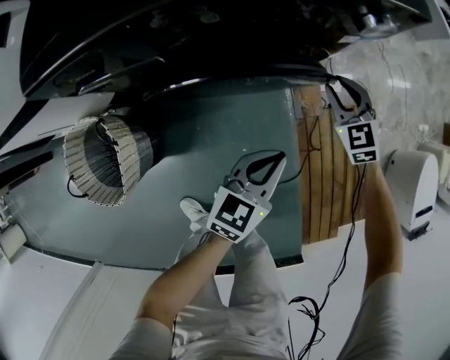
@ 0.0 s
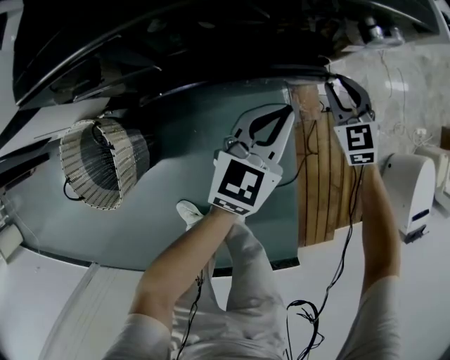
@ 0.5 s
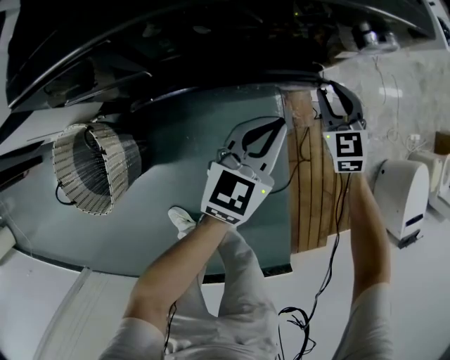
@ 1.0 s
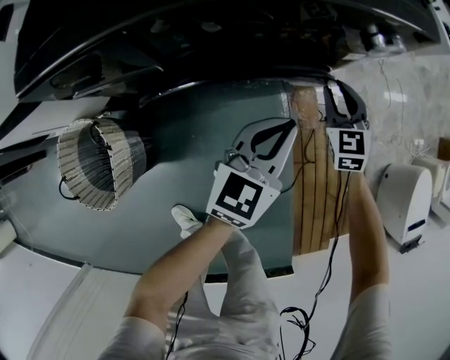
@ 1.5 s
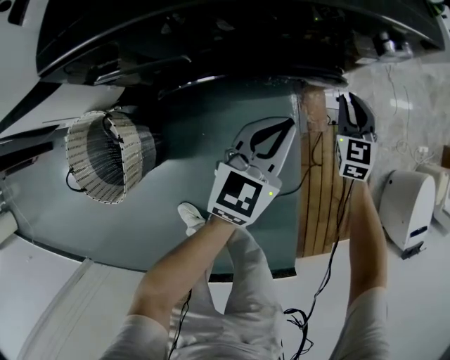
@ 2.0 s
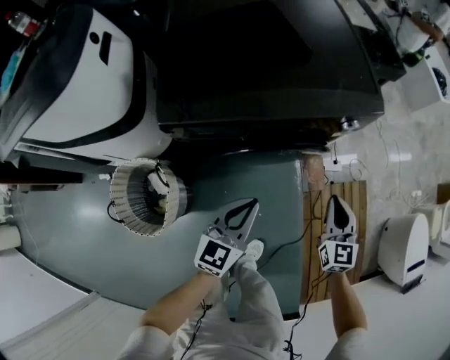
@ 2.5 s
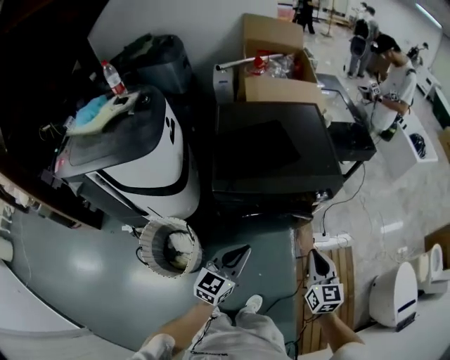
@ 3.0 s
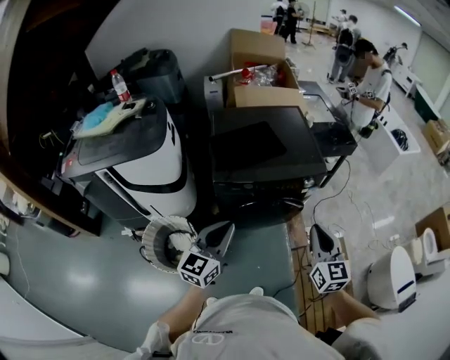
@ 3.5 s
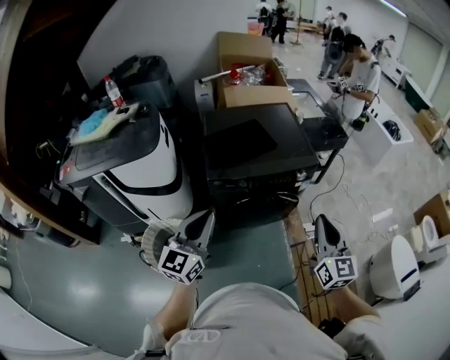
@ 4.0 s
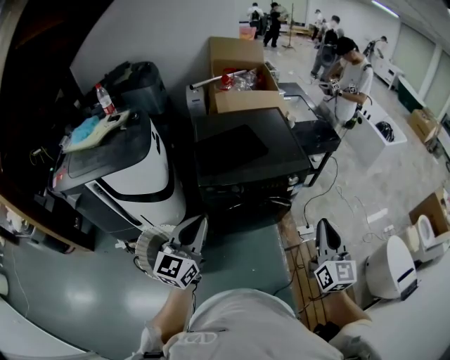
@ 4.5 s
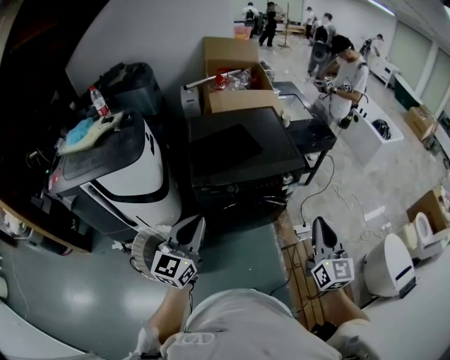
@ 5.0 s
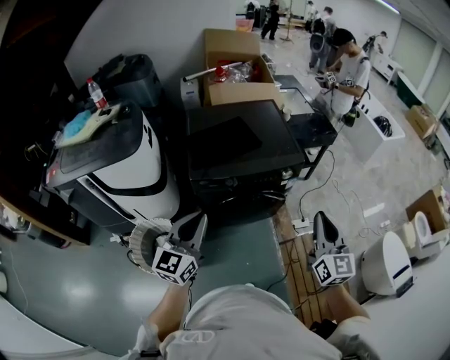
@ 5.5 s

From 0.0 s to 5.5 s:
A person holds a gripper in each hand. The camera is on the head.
From 0.0 s to 2.0 s: The left gripper shifts approximately 10 cm forward.
From 2.0 s to 3.5 s: The left gripper travels upward, backward and to the left by roughly 60 cm. Meanwhile the right gripper travels upward and backward by some 60 cm, and rotates some 30 degrees.
From 3.5 s to 5.5 s: The right gripper shifts roughly 10 cm to the right.

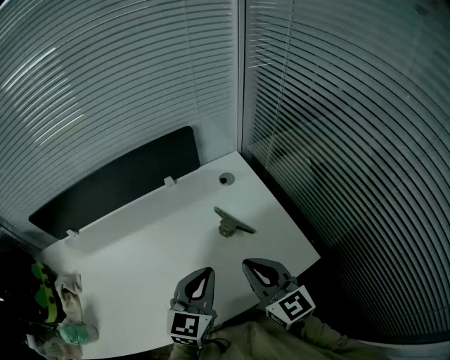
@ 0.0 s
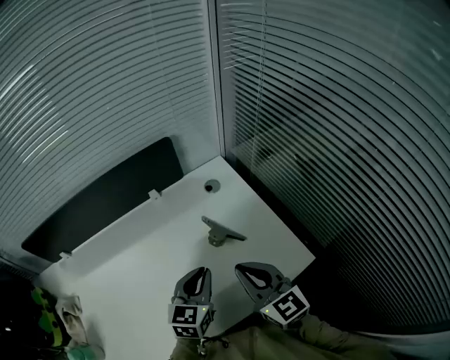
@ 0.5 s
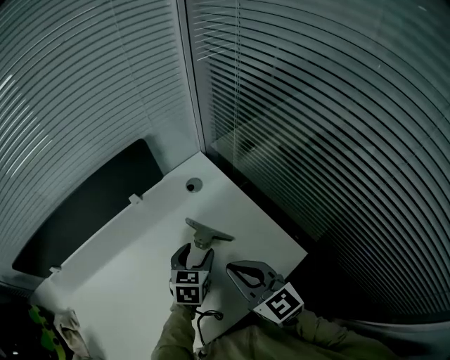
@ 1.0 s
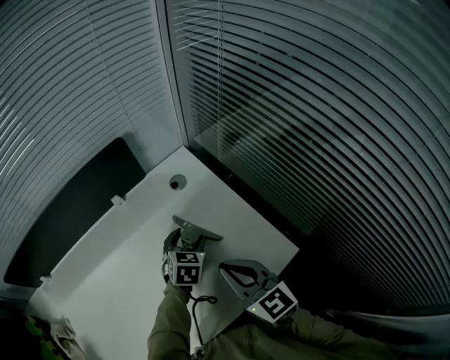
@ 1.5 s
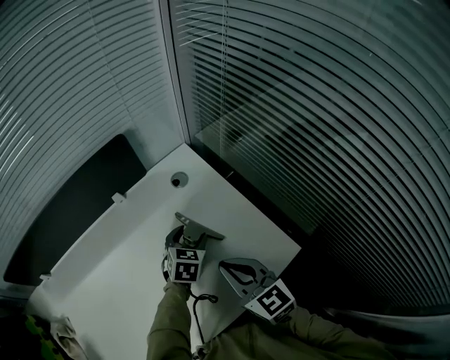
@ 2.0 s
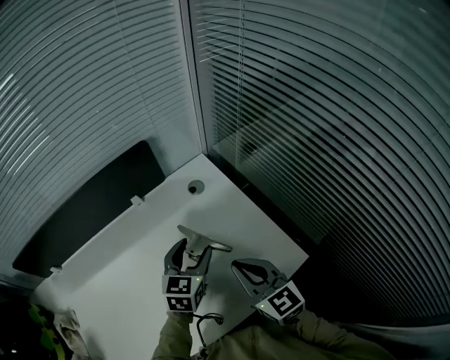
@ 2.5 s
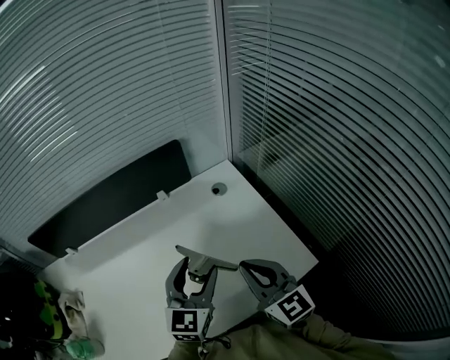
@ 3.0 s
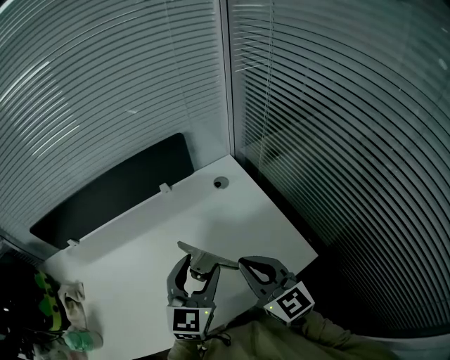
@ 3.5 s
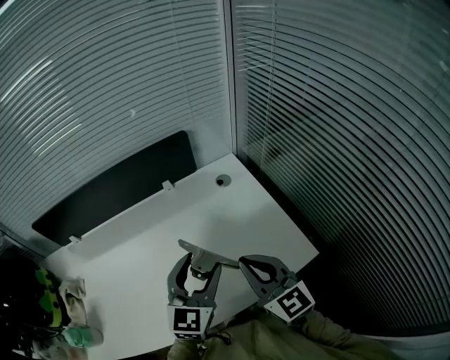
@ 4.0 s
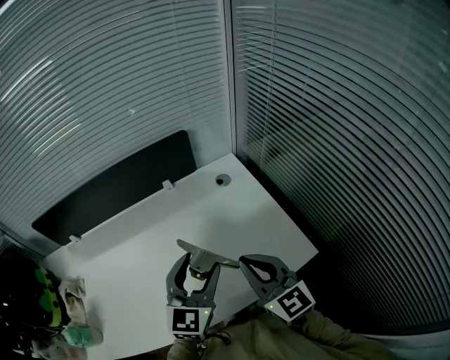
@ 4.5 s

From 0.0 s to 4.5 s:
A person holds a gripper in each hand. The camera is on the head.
From 0.0 s to 2.0 s: The left gripper heads forward, downward and to the right, covering about 25 cm, points its fingers some 30 degrees further downward, and opens its fingers. Meanwhile the right gripper goes roughly 10 cm downward and forward.
From 2.0 s to 4.5 s: The left gripper heads upward, backward and to the left, covering about 30 cm, and points its fingers some 40 degrees further upward. The right gripper heads upward and backward, covering approximately 10 cm.

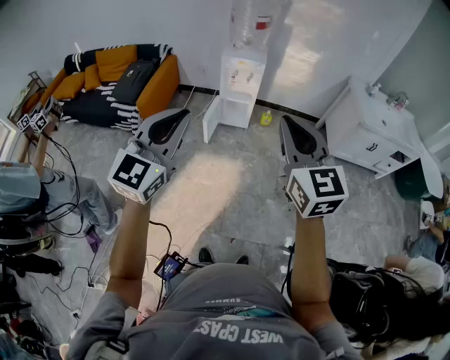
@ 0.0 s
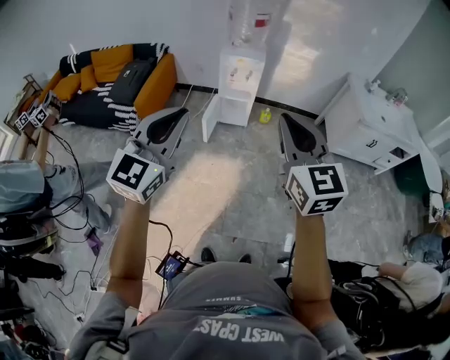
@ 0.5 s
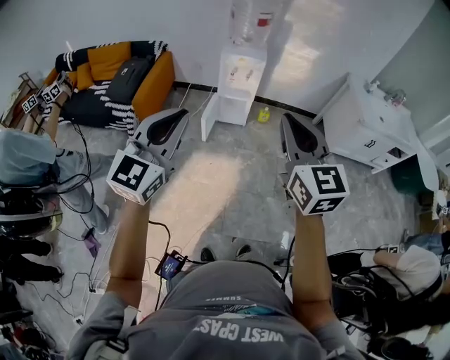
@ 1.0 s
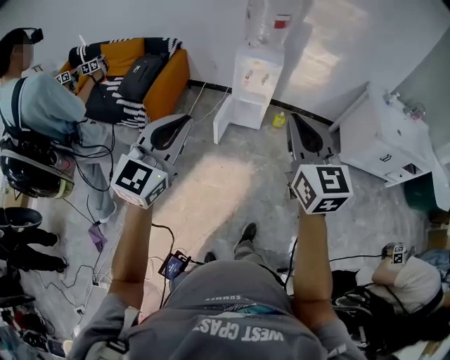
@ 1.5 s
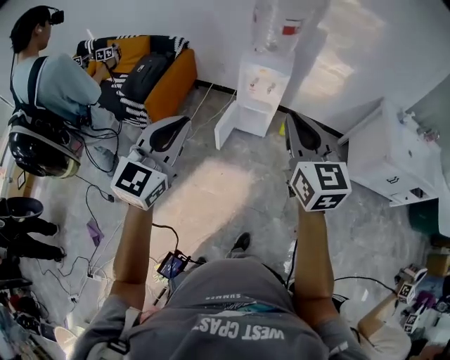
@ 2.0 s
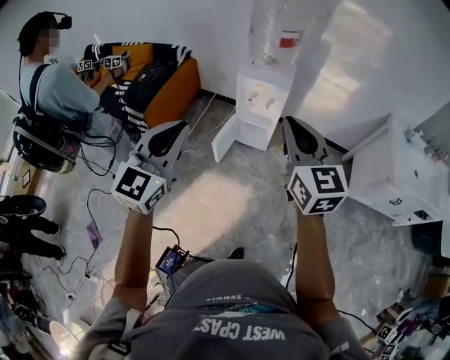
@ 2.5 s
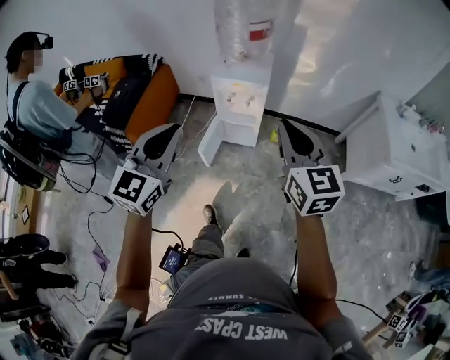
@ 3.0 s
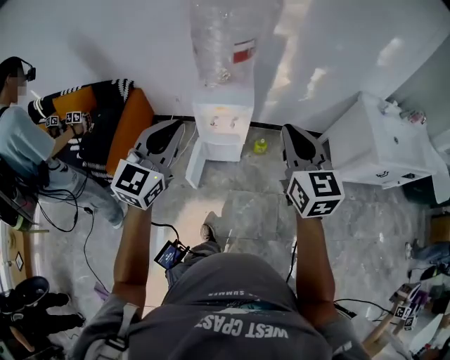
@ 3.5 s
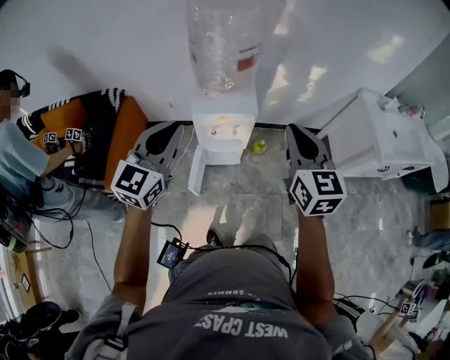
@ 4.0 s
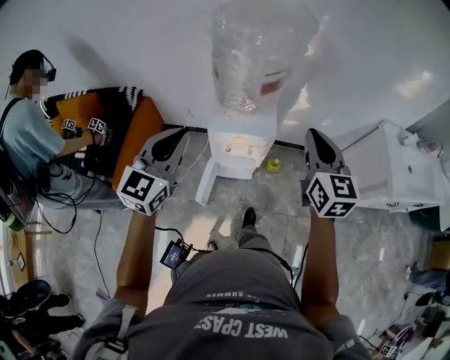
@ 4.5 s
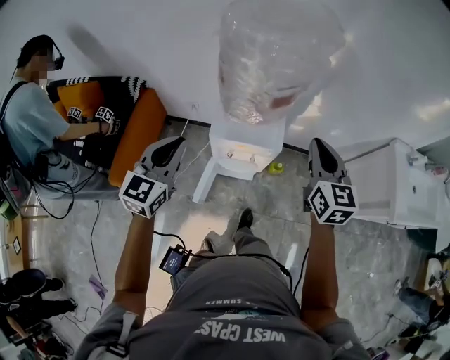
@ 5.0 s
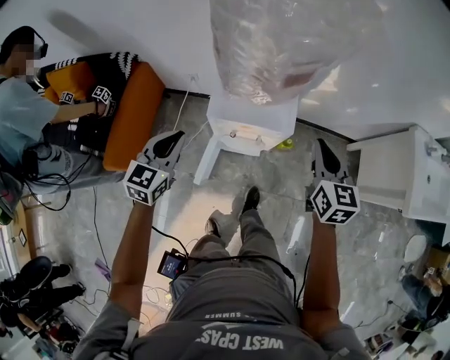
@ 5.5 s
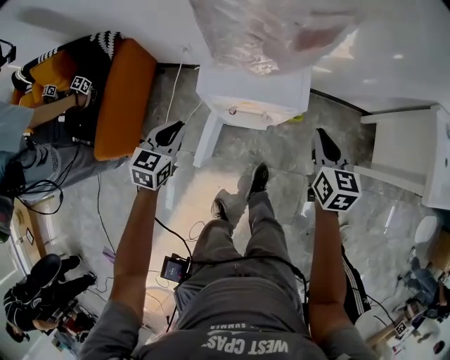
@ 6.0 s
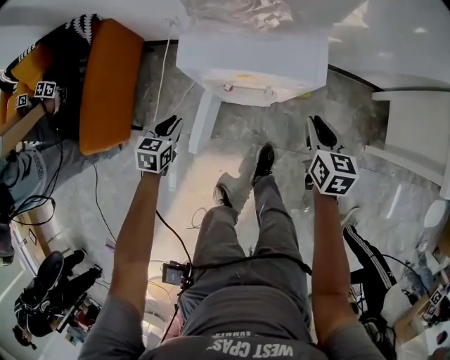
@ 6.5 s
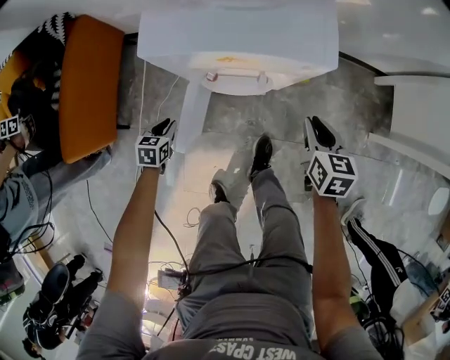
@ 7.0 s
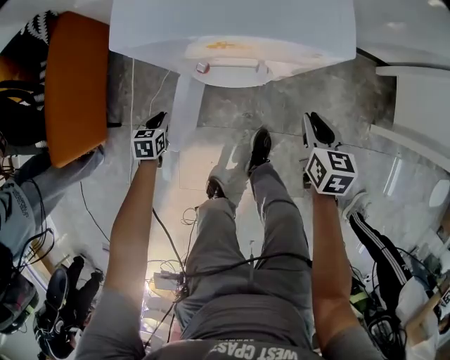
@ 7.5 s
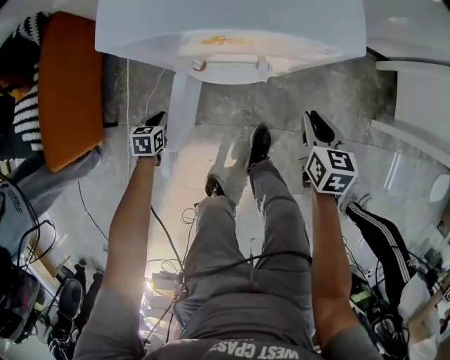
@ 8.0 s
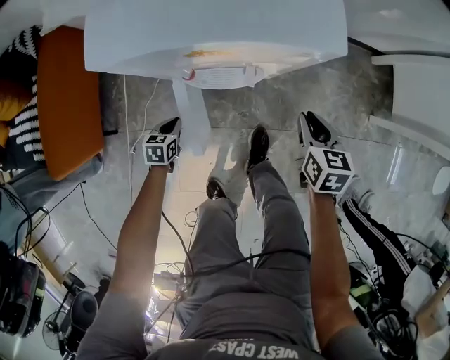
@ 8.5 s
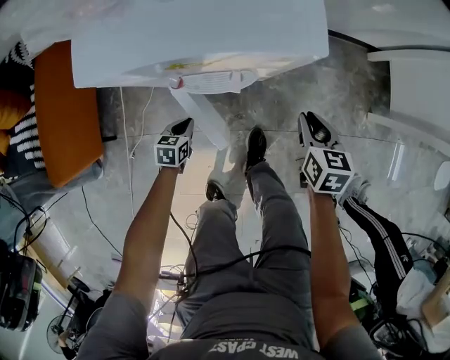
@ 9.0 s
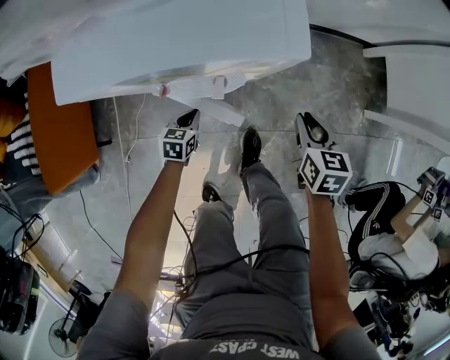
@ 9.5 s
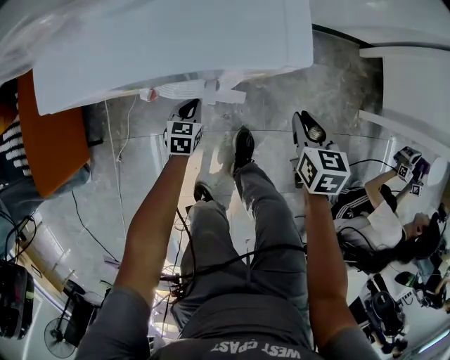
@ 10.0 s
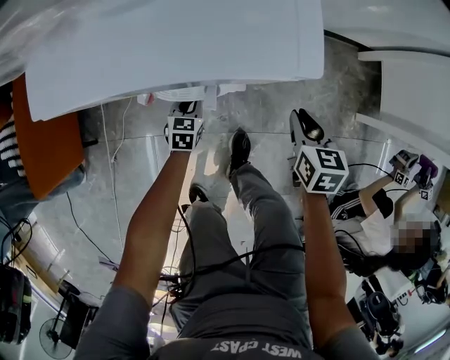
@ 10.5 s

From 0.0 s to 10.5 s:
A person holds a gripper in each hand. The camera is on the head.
From 0.0 s to 2.0 s: Both grippers move forward, approximately 20 cm.
From 2.0 s to 4.0 s: Both grippers move forward, some 40 cm. The right gripper turns by about 20 degrees.
From 4.0 s to 6.5 s: The grippers both shift downward by some 50 cm. The left gripper points its fingers about 50 degrees further downward, while the right gripper changes its angle by some 30 degrees.
From 6.5 s to 8.5 s: The right gripper heads downward, covering some 15 cm. The left gripper is displaced downward by roughly 25 cm.
From 8.5 s to 10.5 s: The right gripper changes place by about 5 cm; the left gripper heads to the right and forward, covering roughly 20 cm.

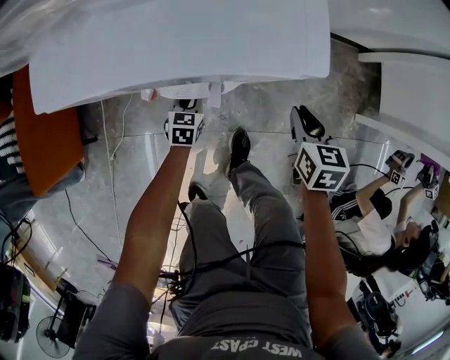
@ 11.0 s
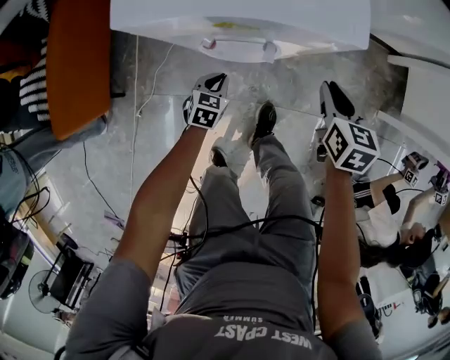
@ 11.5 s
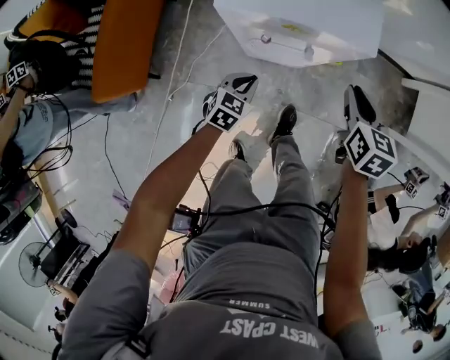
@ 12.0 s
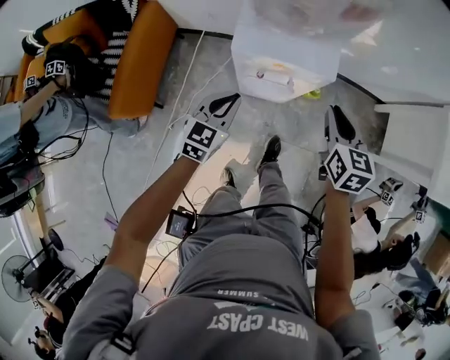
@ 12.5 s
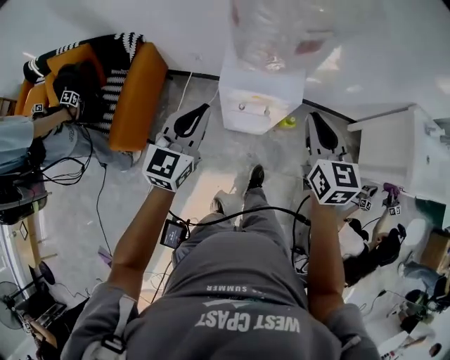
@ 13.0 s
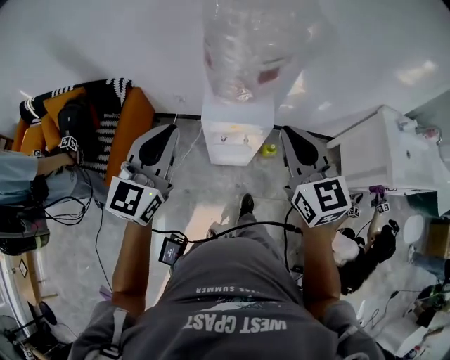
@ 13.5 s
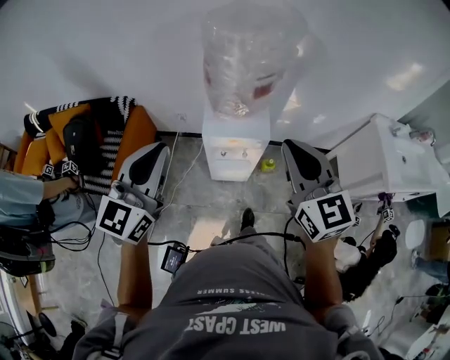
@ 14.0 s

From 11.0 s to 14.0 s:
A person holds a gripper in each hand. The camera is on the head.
From 11.0 s to 12.5 s: The grippers both shift upward by approximately 40 cm. The left gripper turns by roughly 20 degrees.
From 12.5 s to 14.0 s: The grippers both shift upward by about 40 cm. The right gripper changes its angle by roughly 30 degrees. The left gripper points its fingers approximately 30 degrees further upward.

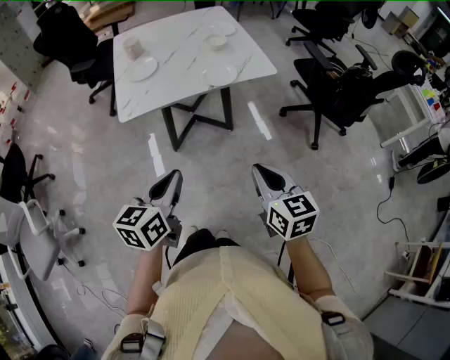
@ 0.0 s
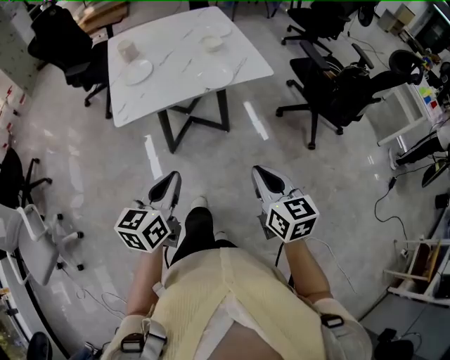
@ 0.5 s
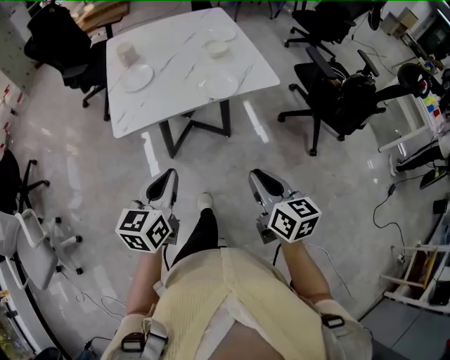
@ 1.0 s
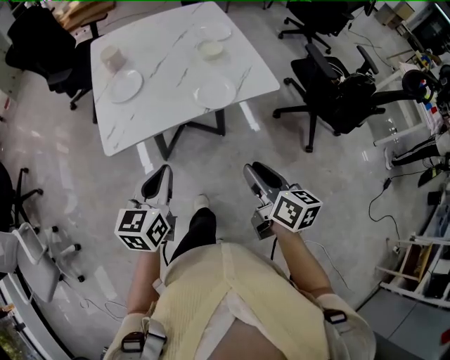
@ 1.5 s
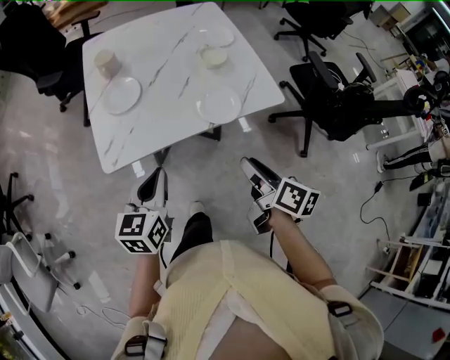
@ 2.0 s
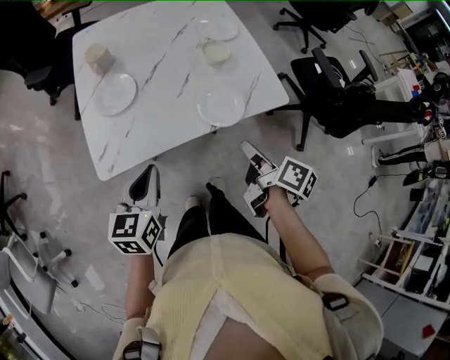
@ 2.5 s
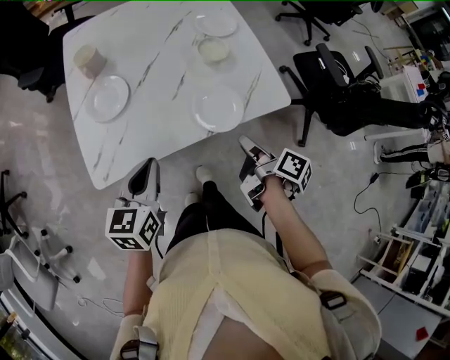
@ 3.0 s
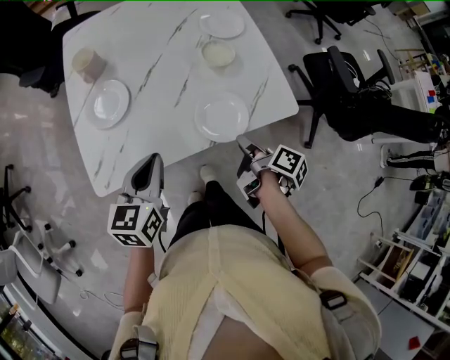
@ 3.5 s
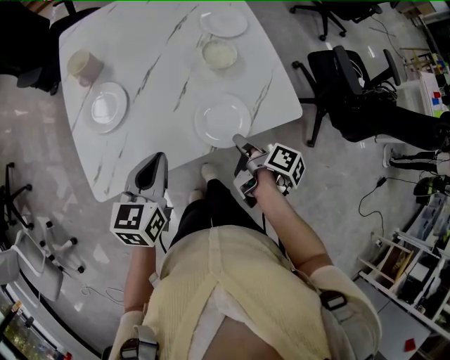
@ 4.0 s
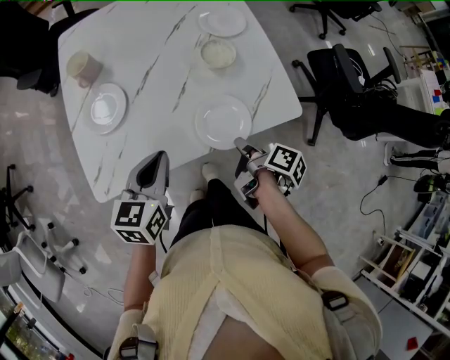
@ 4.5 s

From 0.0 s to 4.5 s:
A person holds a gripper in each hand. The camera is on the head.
From 0.0 s to 2.0 s: The two grippers go about 25 cm forward. The right gripper rotates around the line of its fingers by about 40 degrees, clockwise from behind, and opens.
From 2.0 s to 4.5 s: The left gripper heads forward, covering approximately 15 cm, while the right gripper travels forward and downward by some 20 cm, rotates approximately 30 degrees, and closes up.
